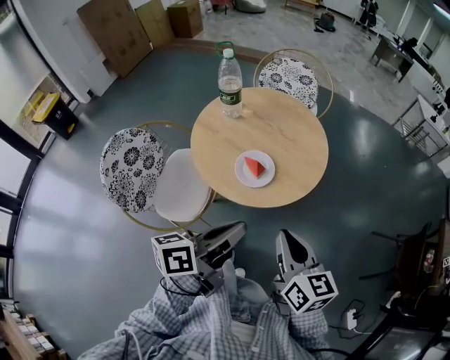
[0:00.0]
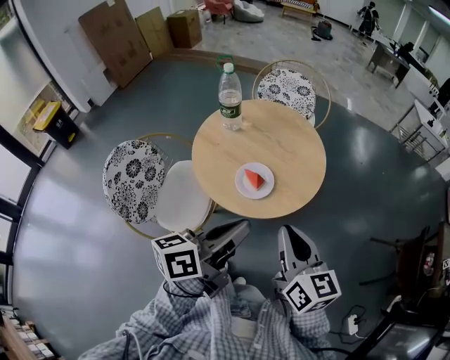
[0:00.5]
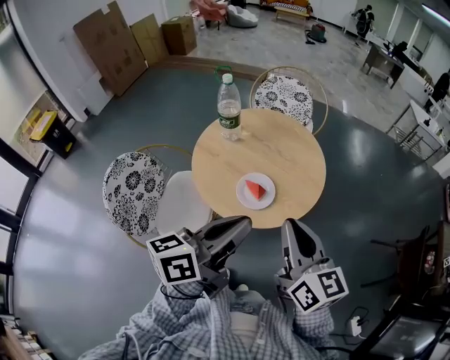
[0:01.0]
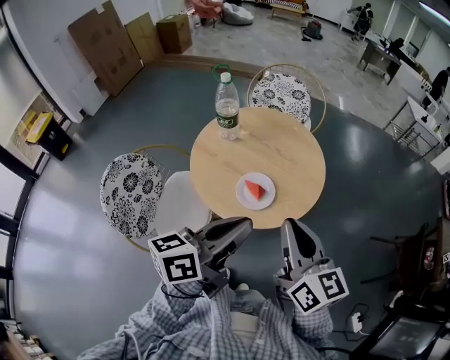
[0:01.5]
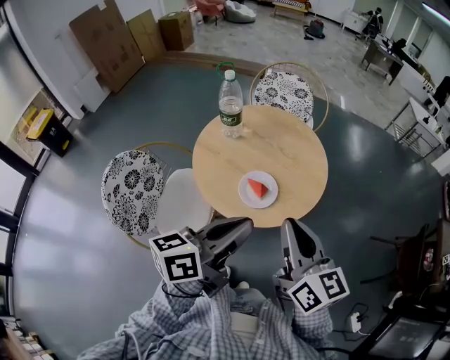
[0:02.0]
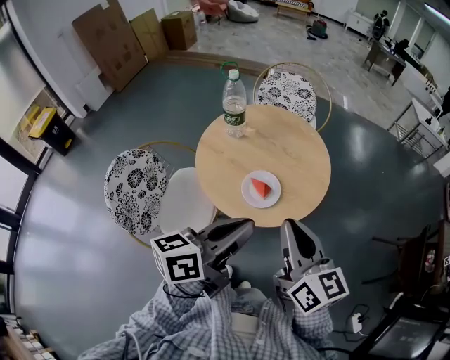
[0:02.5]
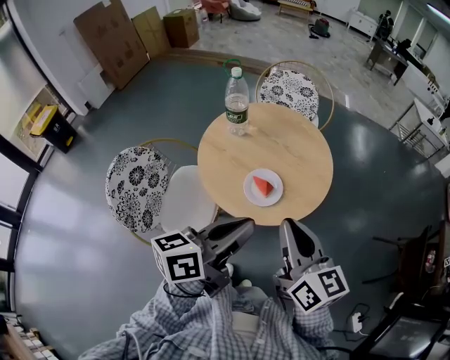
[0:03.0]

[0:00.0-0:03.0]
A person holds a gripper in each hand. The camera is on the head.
0.0 to 1.5 s: The right gripper moves upward, approximately 10 cm.

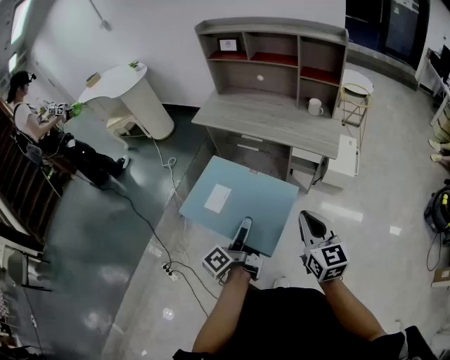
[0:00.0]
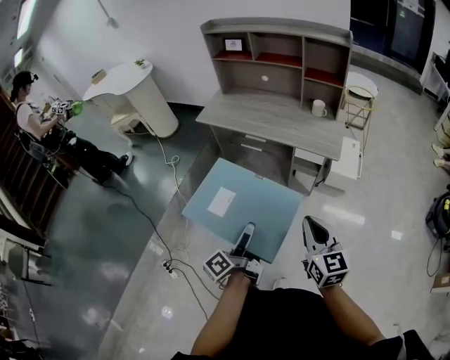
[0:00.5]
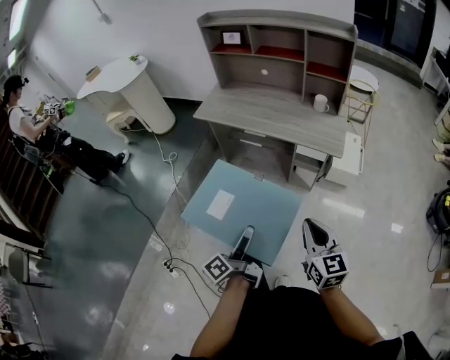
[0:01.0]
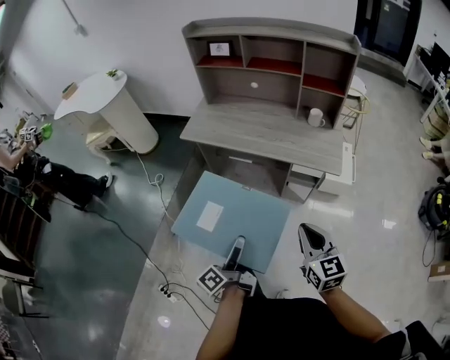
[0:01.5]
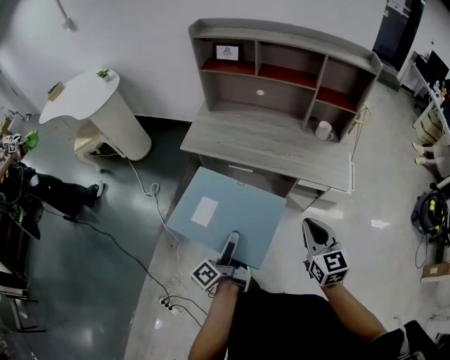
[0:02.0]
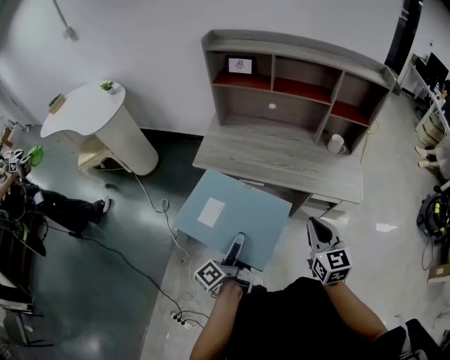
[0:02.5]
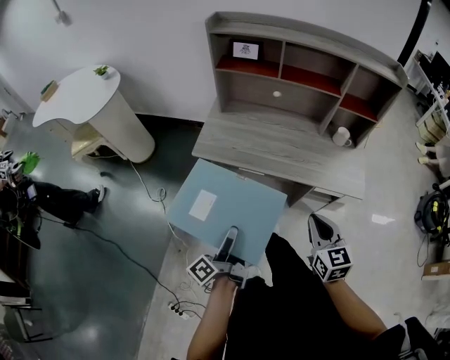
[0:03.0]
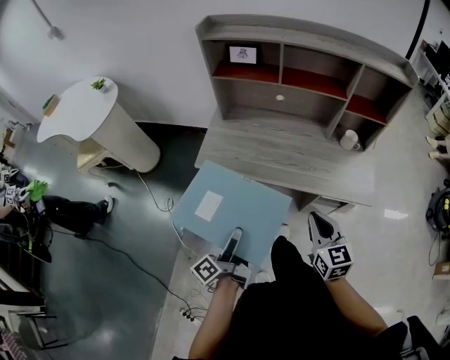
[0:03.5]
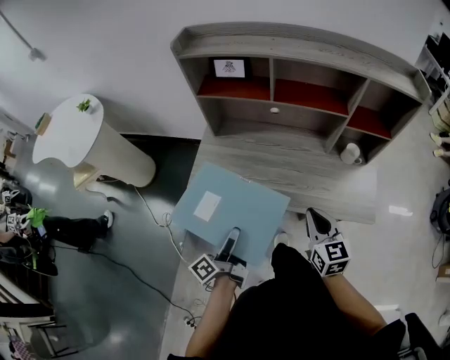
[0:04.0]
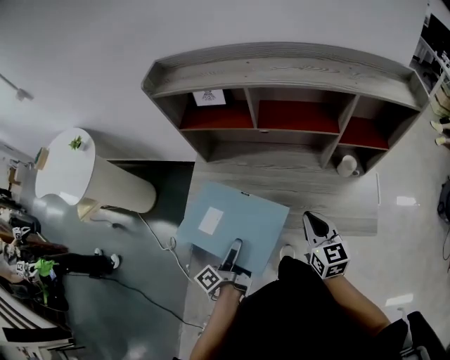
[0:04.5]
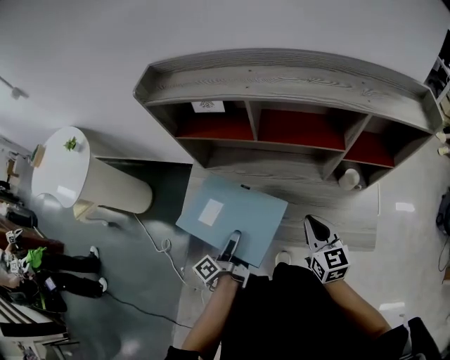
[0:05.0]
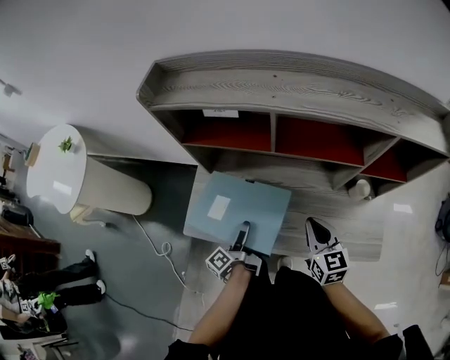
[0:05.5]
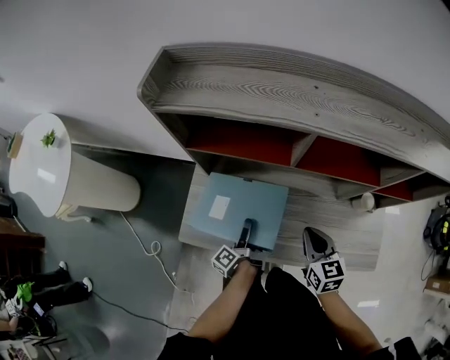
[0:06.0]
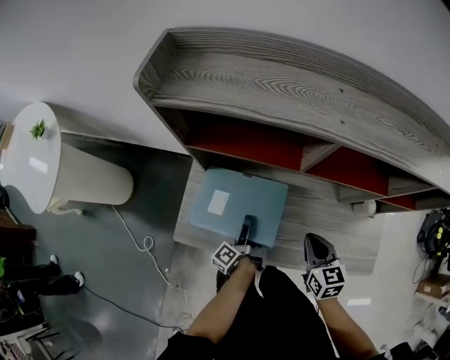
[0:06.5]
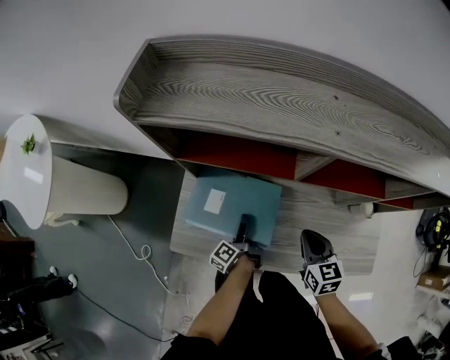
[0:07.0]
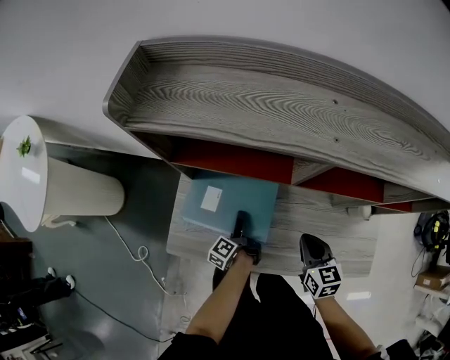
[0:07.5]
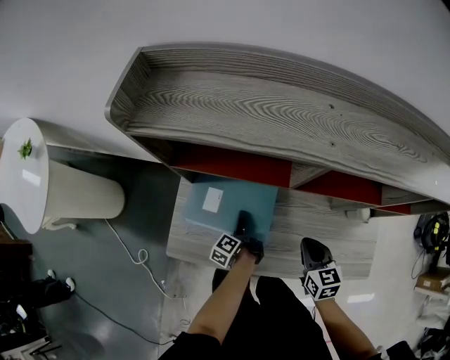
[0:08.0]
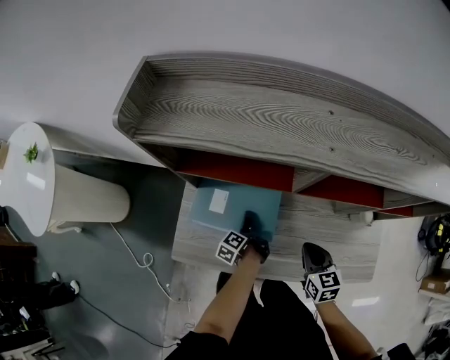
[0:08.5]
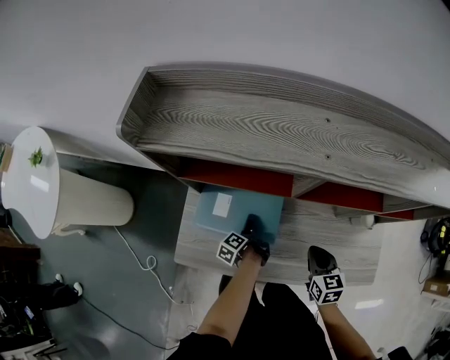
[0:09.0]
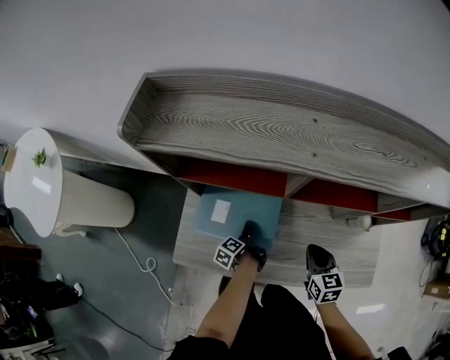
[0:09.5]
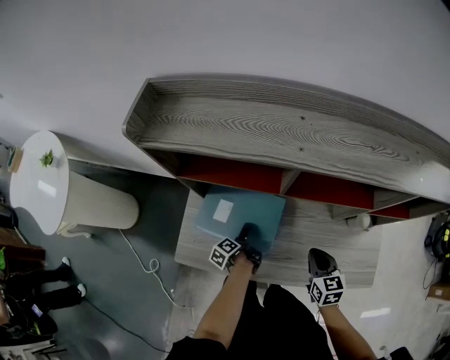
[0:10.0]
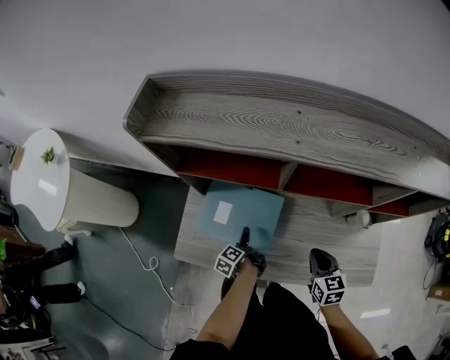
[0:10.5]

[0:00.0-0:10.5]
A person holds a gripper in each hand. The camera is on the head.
0.0 to 2.0 s: The right gripper shifts by some 30 cm.
2.0 to 4.0 s: The right gripper changes place by approximately 30 cm.
4.0 to 6.5 s: The right gripper shifts by approximately 25 cm.
8.5 to 10.5 s: The right gripper shifts by about 5 cm.

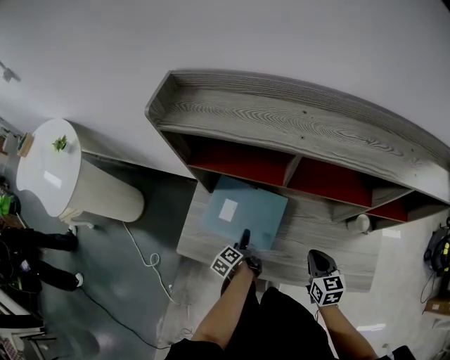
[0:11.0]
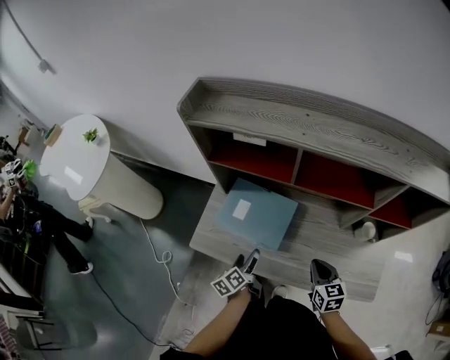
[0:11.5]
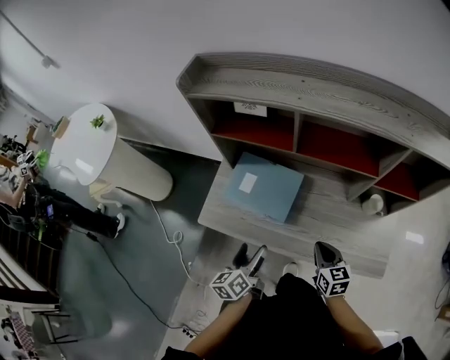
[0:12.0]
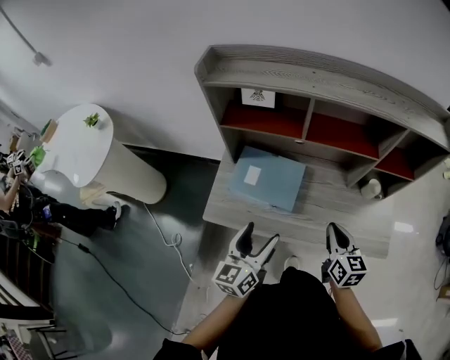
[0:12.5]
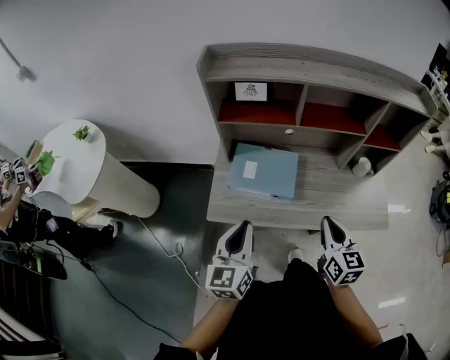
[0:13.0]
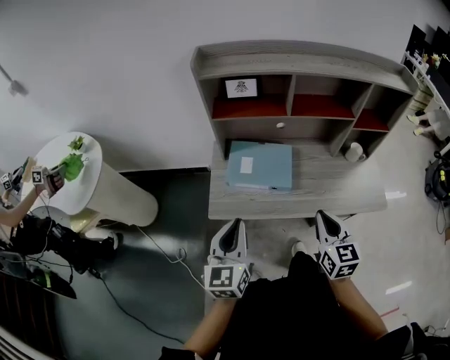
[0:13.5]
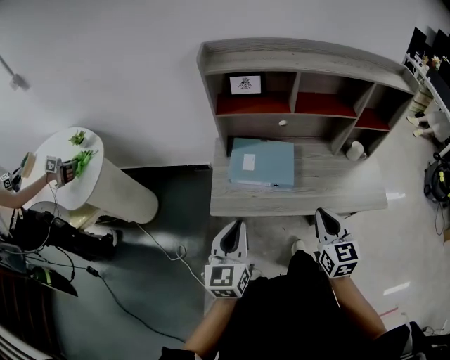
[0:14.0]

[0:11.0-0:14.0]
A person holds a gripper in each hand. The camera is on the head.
11.0 to 12.5 s: The right gripper ends up some 15 cm from where it was.
12.5 to 14.0 s: The right gripper changes place by about 20 cm.

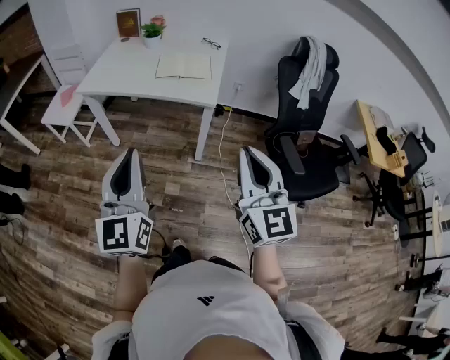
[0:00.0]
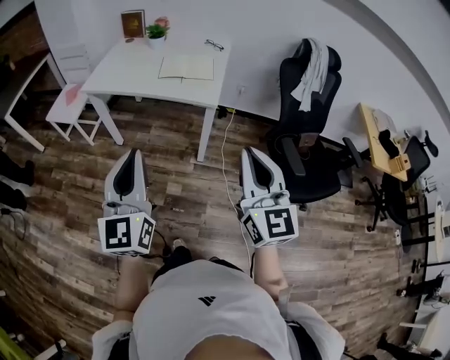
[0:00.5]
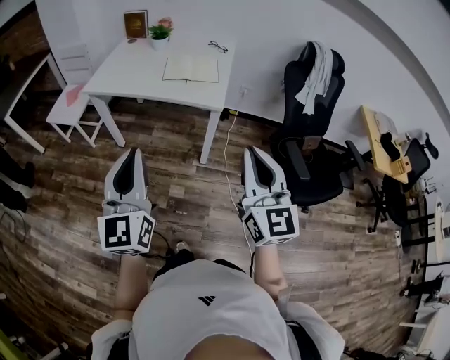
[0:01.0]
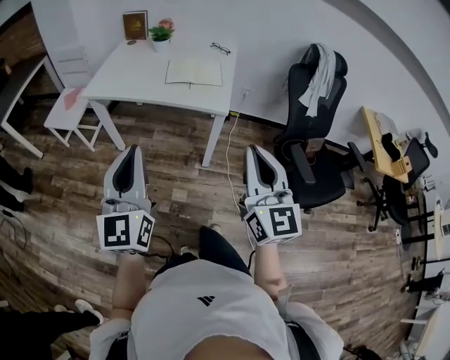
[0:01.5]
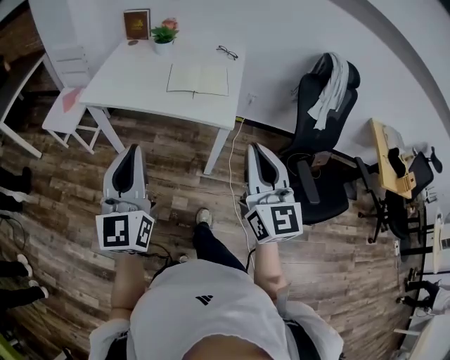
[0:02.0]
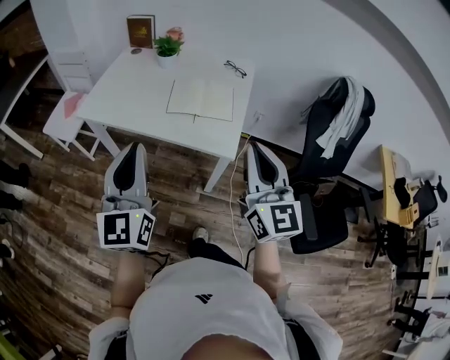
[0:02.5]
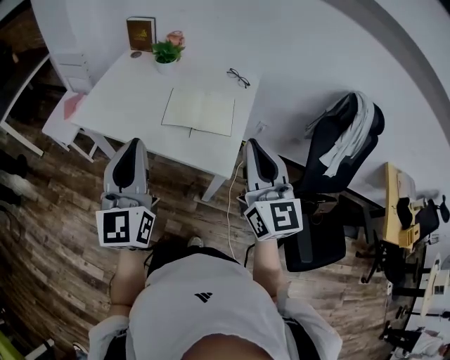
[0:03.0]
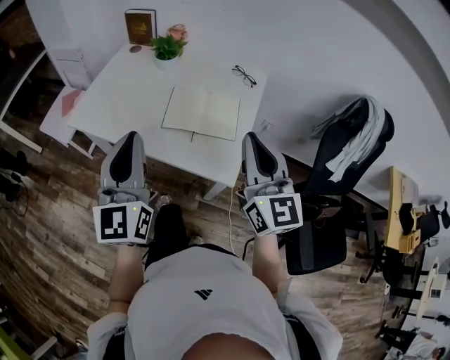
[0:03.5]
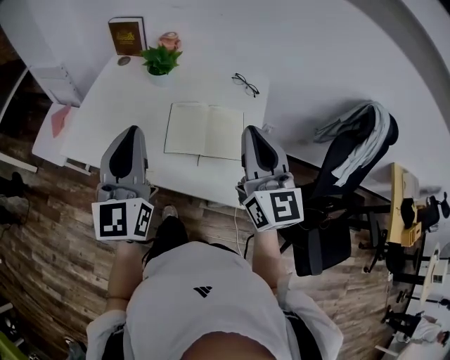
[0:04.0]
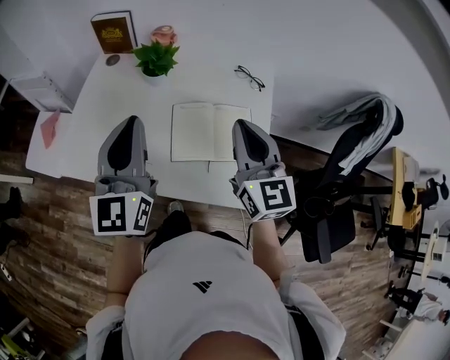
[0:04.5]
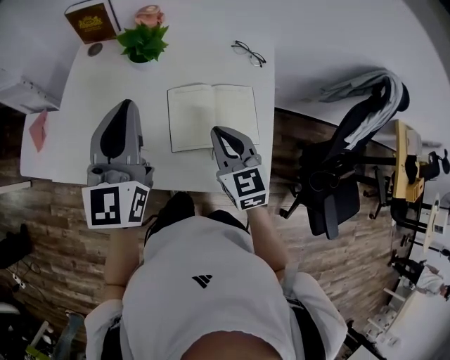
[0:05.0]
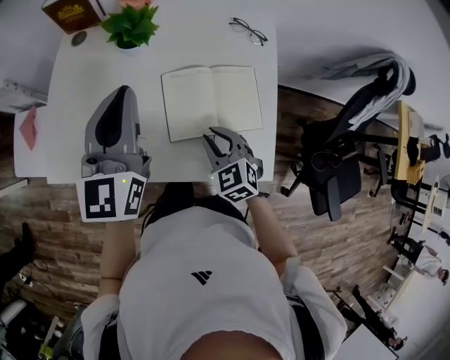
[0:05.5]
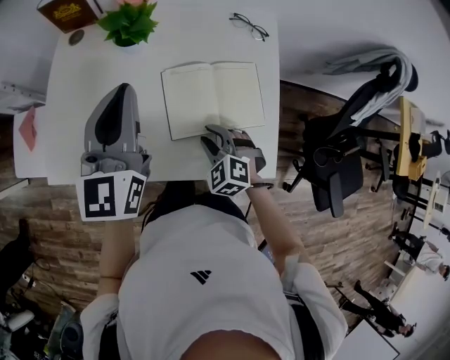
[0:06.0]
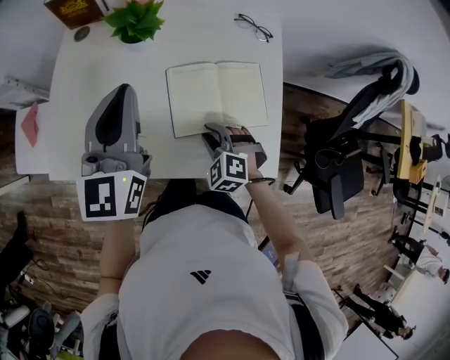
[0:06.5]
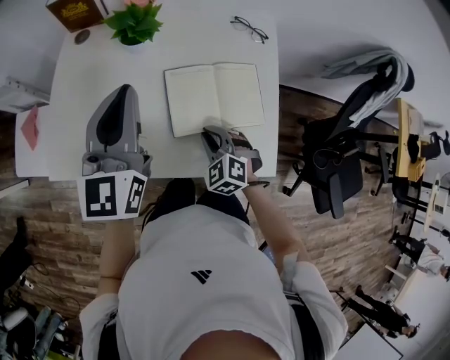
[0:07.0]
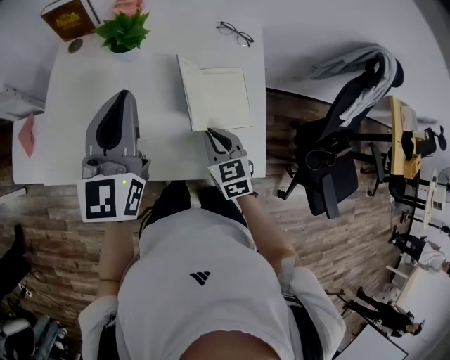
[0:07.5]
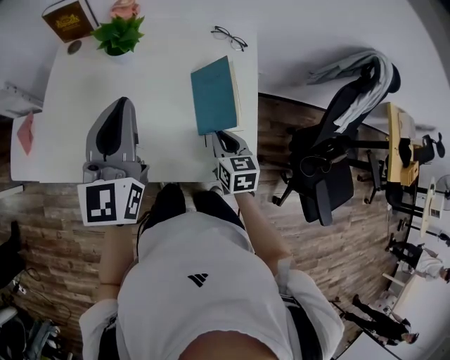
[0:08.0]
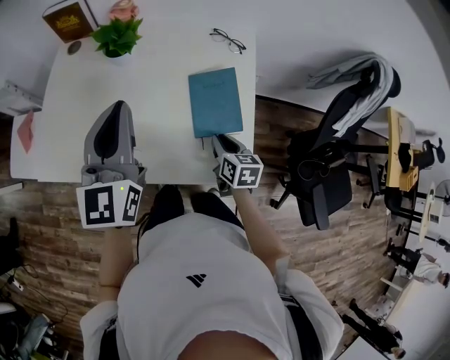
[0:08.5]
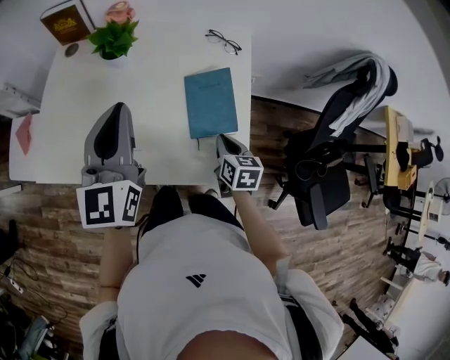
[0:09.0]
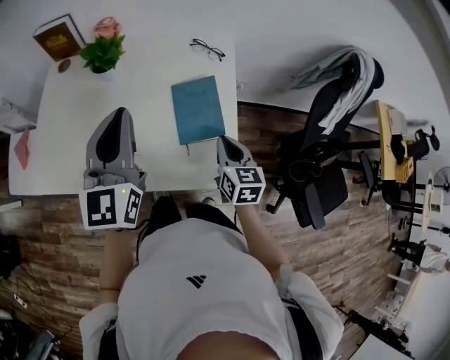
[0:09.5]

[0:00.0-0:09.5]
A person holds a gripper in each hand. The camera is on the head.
0.0 to 2.0 s: Both grippers move forward, approximately 15 cm.
2.0 to 4.0 s: The two grippers go about 40 cm forward.
4.0 to 5.5 s: The left gripper shifts roughly 20 cm forward and downward. Meanwhile the right gripper is displaced downward by some 30 cm, and points its fingers some 50 degrees further downward.
5.5 to 7.5 s: The right gripper swivels some 20 degrees.
7.5 to 9.5 s: The right gripper travels to the right by some 10 cm, and rotates some 20 degrees. The left gripper shifts roughly 5 cm to the right.

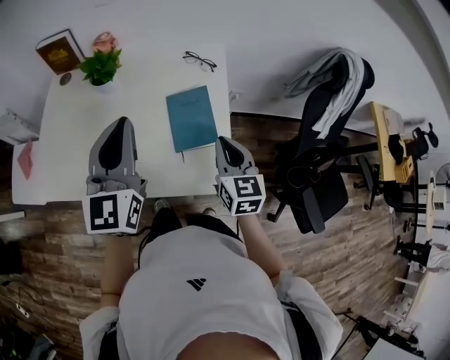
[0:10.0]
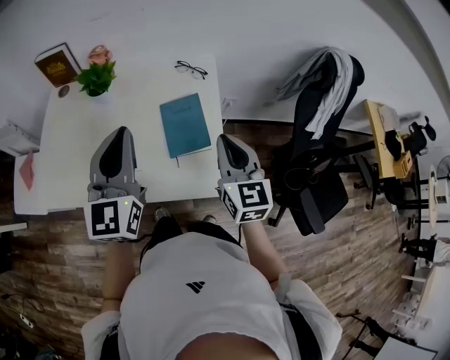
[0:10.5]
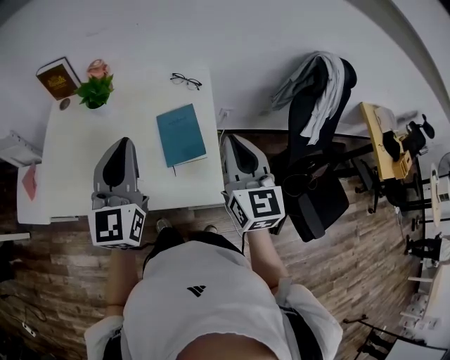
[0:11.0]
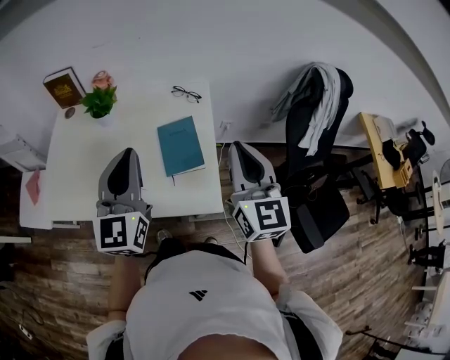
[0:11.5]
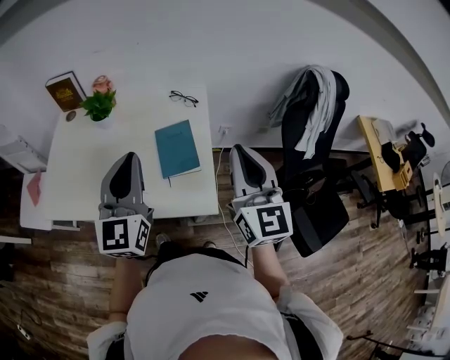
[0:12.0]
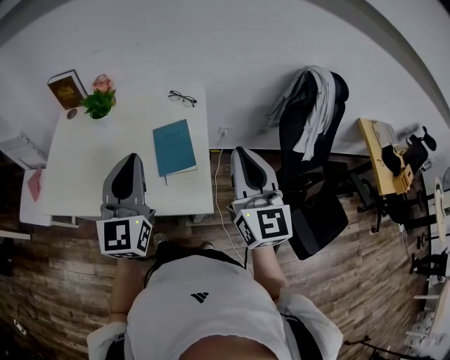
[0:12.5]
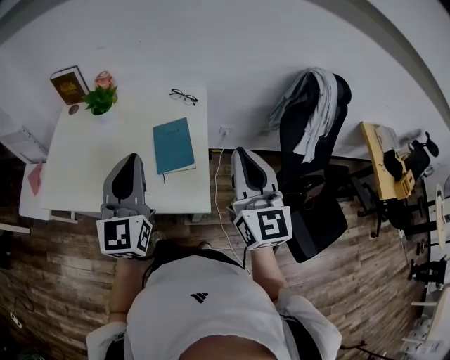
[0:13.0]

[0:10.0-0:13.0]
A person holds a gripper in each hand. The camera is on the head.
10.0 to 11.5 s: The left gripper ends up approximately 5 cm from where it was. The right gripper heads upward, covering roughly 15 cm, and turns by some 20 degrees.
11.5 to 13.0 s: The left gripper shifts by roughly 5 cm. The right gripper changes place by some 5 cm.
